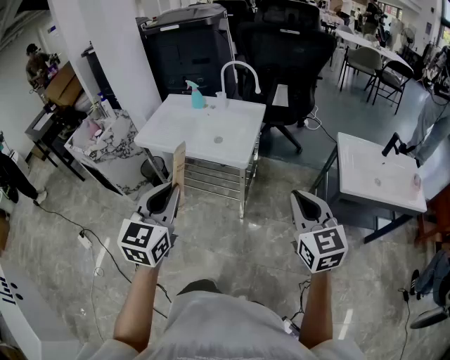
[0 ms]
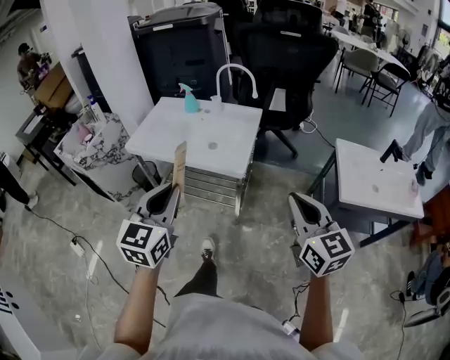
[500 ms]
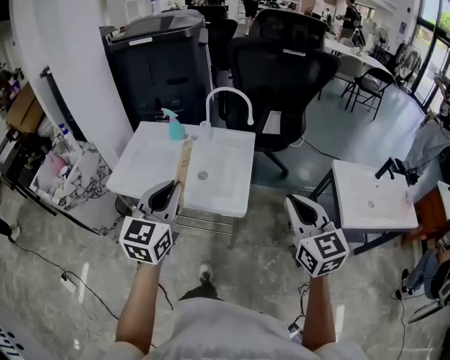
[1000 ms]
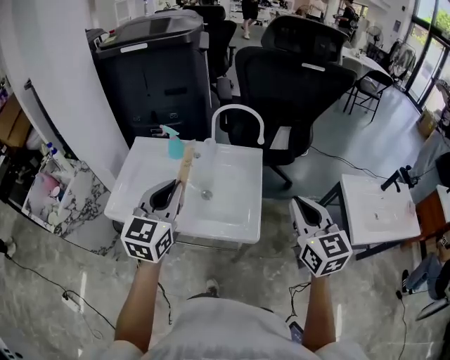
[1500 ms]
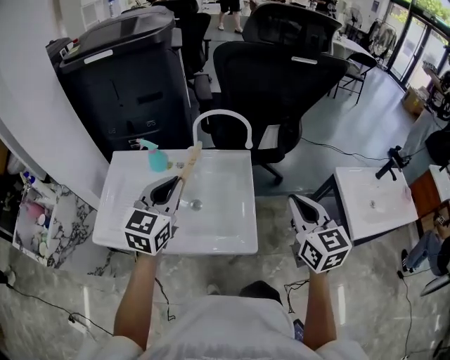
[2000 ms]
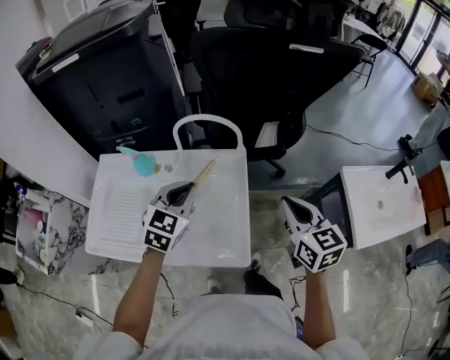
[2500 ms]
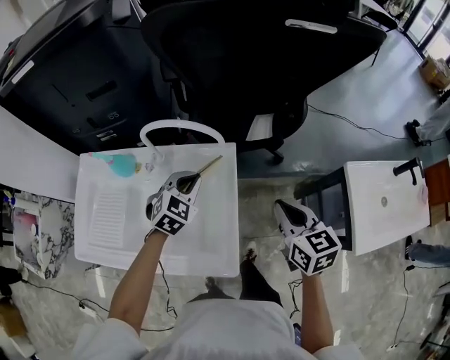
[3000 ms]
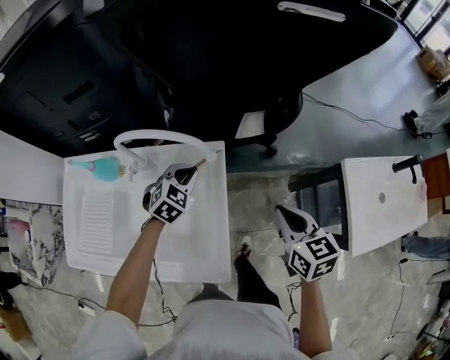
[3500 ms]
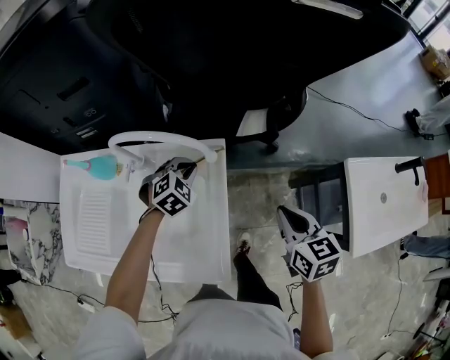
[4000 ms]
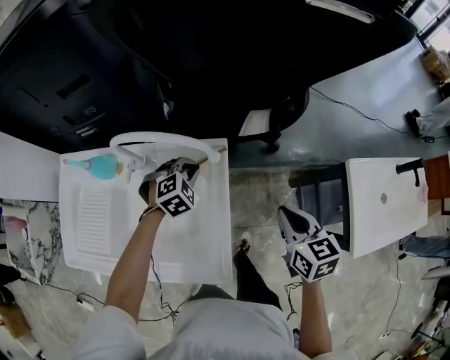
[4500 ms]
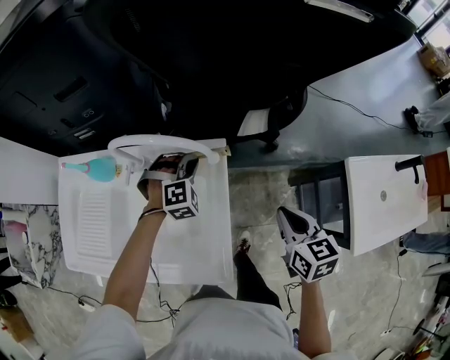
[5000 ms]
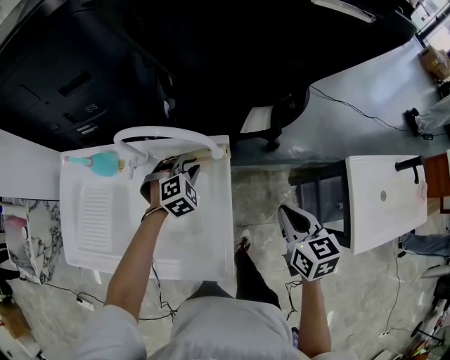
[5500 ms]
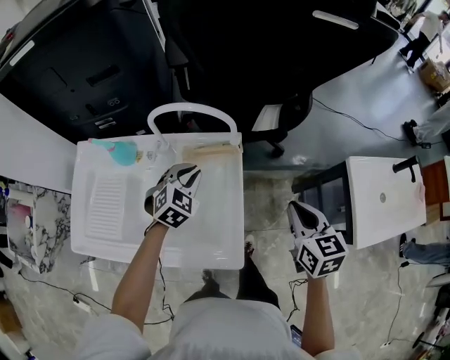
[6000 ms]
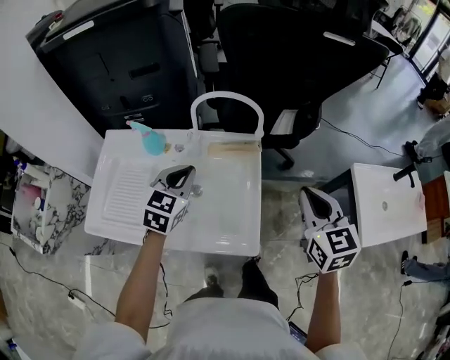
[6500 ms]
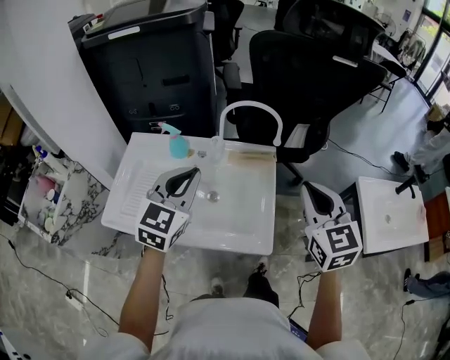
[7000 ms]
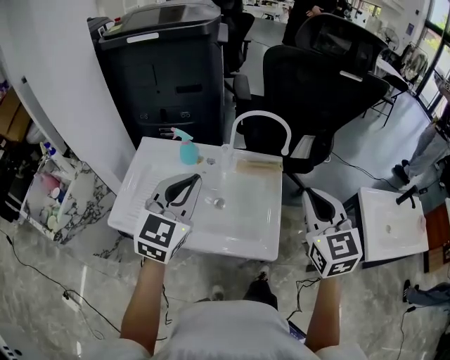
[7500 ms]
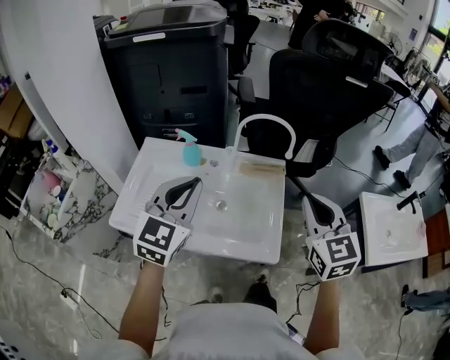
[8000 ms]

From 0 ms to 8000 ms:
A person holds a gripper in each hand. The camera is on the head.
From 0 ms to 2000 ms: The pair of grippers is taken forward, about 50 cm. The left gripper turns by approximately 20 degrees.
From 2000 ms to 4000 ms: The left gripper shifts some 40 cm downward, forward and to the right, and points its fingers some 40 degrees further downward, while the right gripper goes approximately 25 cm downward, forward and to the right, and rotates some 30 degrees.
From 4000 ms to 6000 ms: The right gripper ends up roughly 5 cm from where it was, while the left gripper goes some 10 cm backward and upward.
From 6000 ms to 8000 ms: The right gripper shifts some 25 cm upward, to the left and backward, and changes its angle by some 30 degrees, while the left gripper moves upward, backward and to the left, about 35 cm, and tilts its fingers approximately 30 degrees upward.

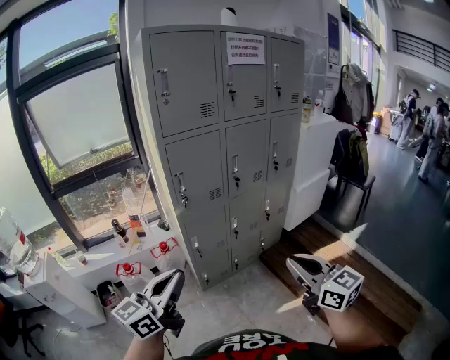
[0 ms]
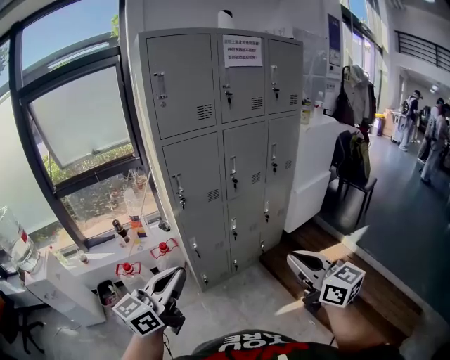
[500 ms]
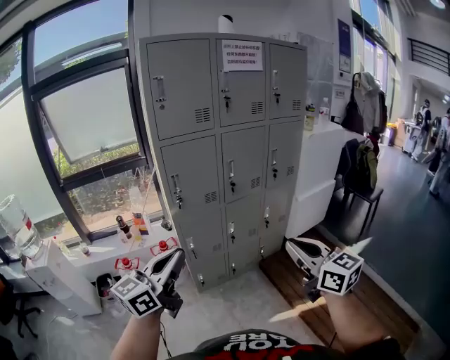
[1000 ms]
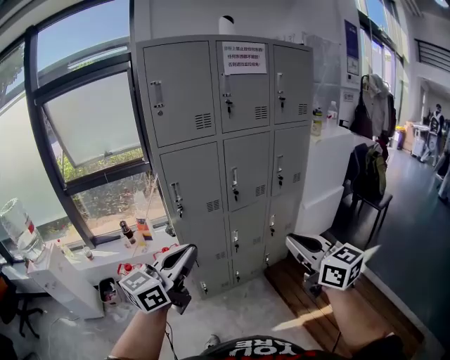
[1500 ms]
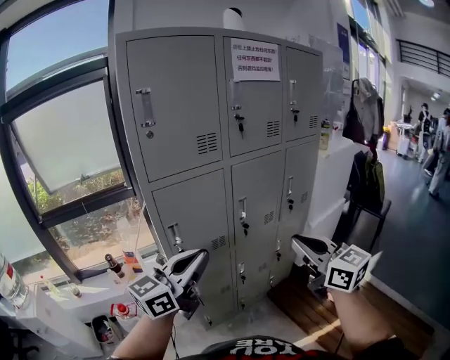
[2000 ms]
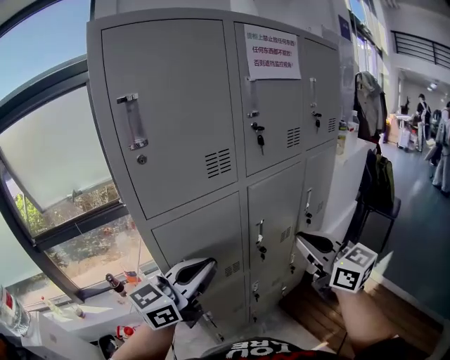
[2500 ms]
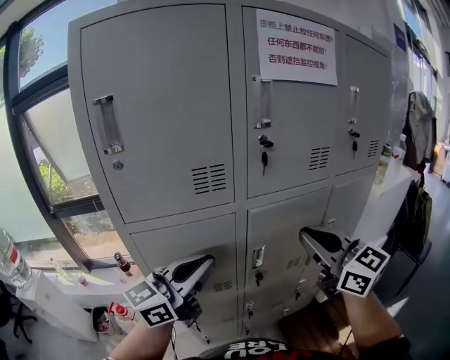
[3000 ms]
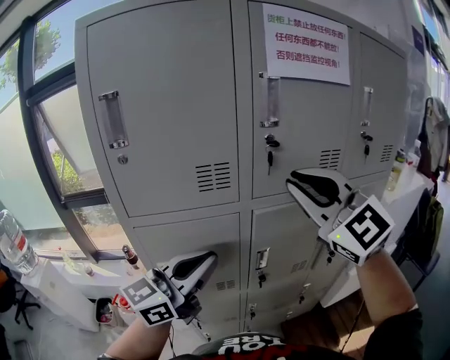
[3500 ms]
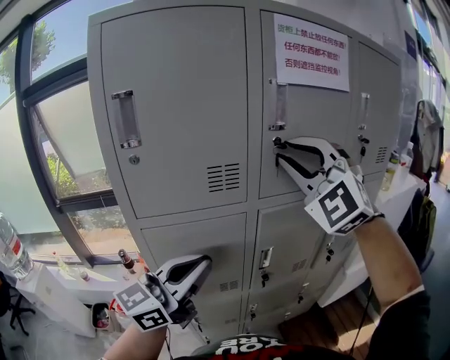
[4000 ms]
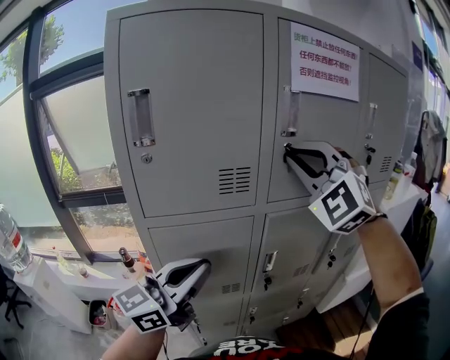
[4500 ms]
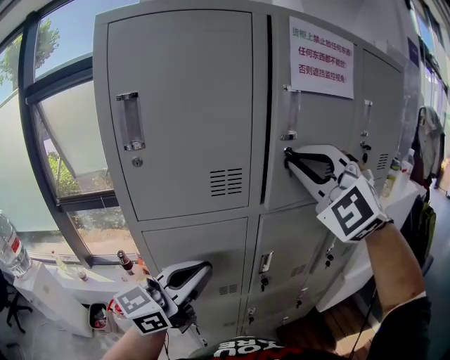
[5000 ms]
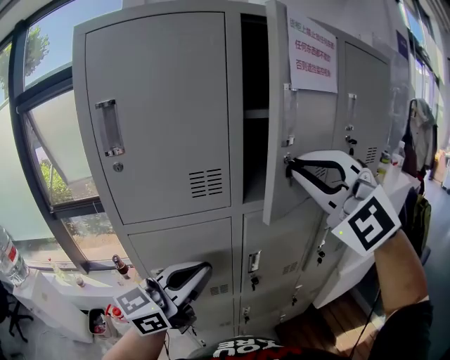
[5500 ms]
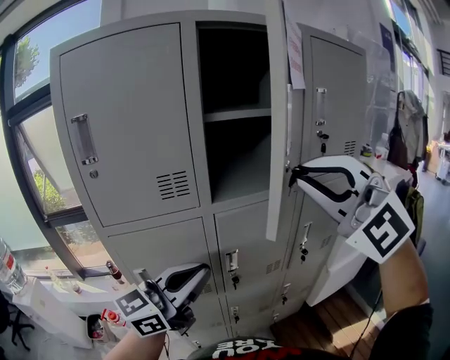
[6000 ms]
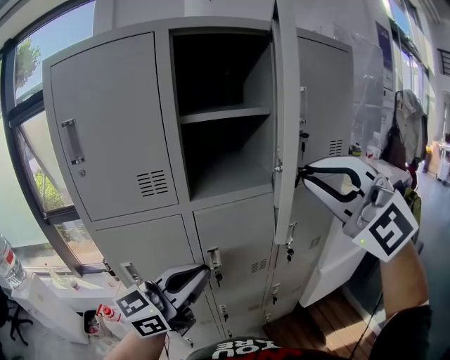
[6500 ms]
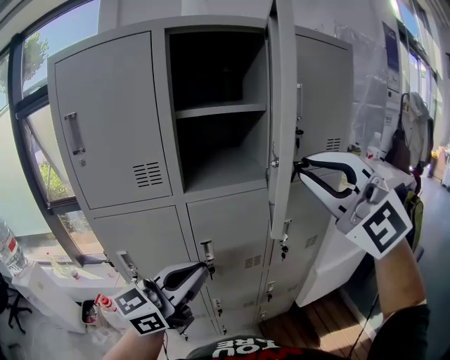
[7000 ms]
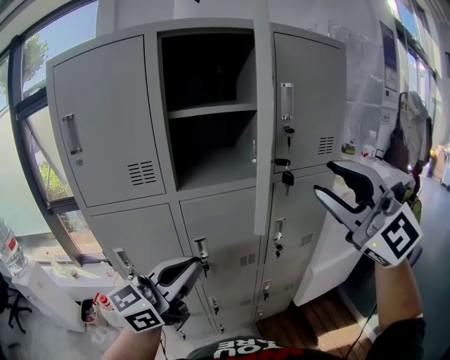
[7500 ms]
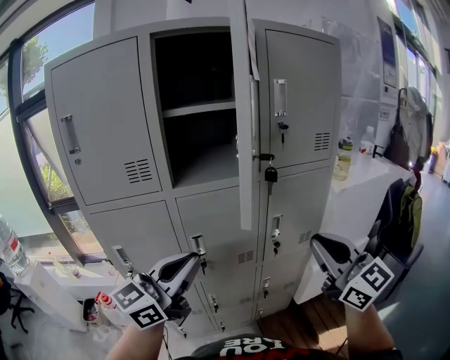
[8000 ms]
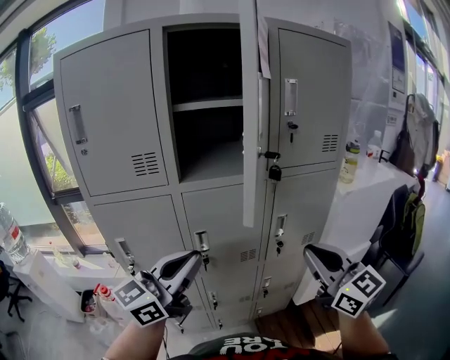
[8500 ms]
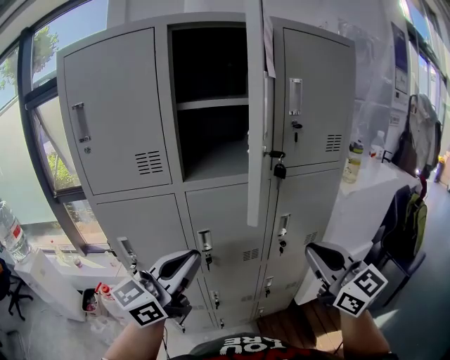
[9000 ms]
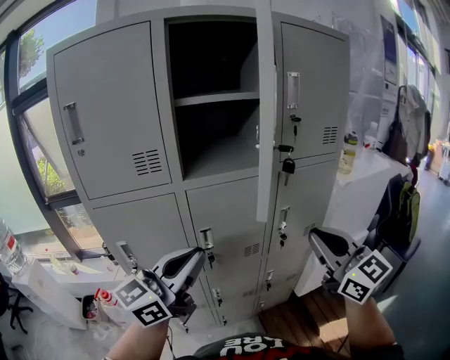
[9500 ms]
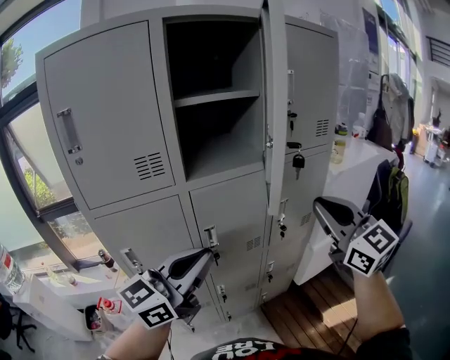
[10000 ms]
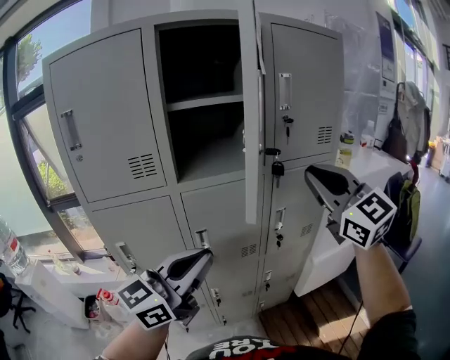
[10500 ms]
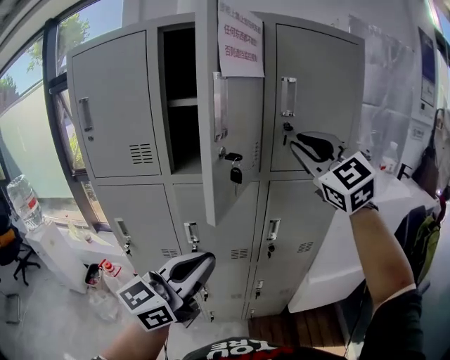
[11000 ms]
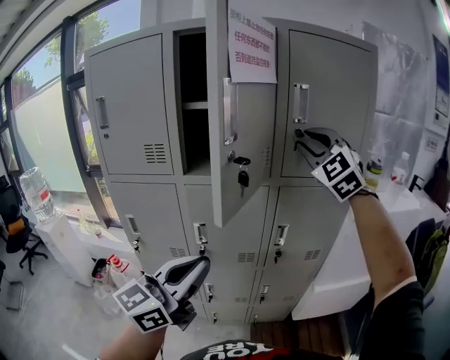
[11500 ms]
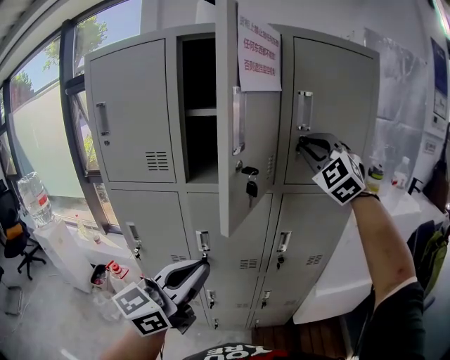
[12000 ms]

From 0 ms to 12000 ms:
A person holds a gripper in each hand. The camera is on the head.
From 0 ms to 2000 ms: The two grippers go roughly 30 cm forward.
From 2000 ms to 4000 ms: The left gripper travels forward by approximately 15 cm. Meanwhile the right gripper is displaced forward and upward by about 35 cm, and twists some 70 degrees counterclockwise, seen from behind.
From 4000 ms to 6000 ms: The right gripper travels to the right and backward by about 15 cm; the left gripper heads to the right, covering approximately 10 cm.
From 6000 ms to 8000 ms: The left gripper is displaced to the right by roughly 10 cm. The right gripper travels to the right and downward by approximately 25 cm, rolls clockwise, seen from behind, by some 60 degrees, and opens, then closes once more.
From 8000 ms to 10000 ms: The right gripper shifts about 5 cm to the left.
From 10000 ms to 12000 ms: The right gripper heads forward and upward, covering about 25 cm, and twists about 50 degrees counterclockwise, seen from behind, while the left gripper moves to the right, about 10 cm, and turns by some 20 degrees.

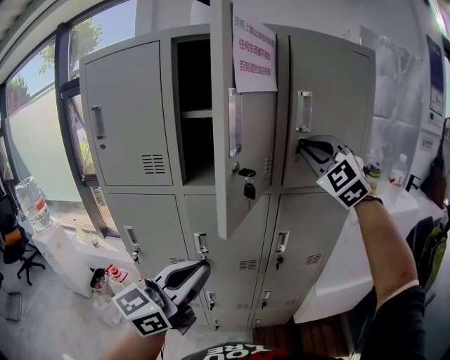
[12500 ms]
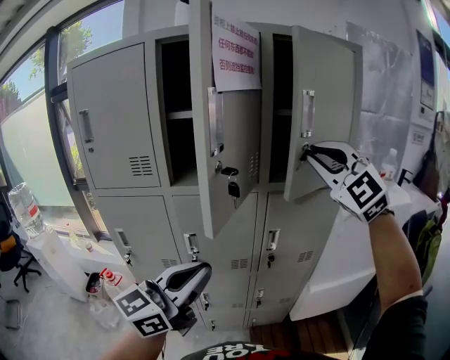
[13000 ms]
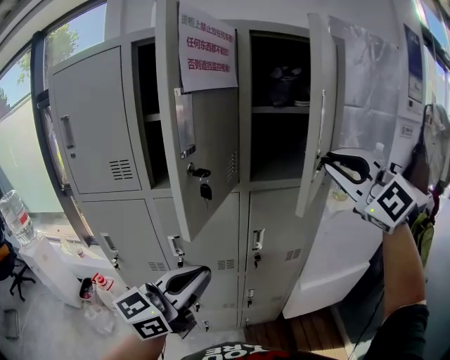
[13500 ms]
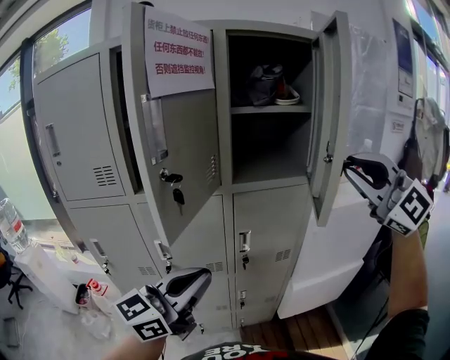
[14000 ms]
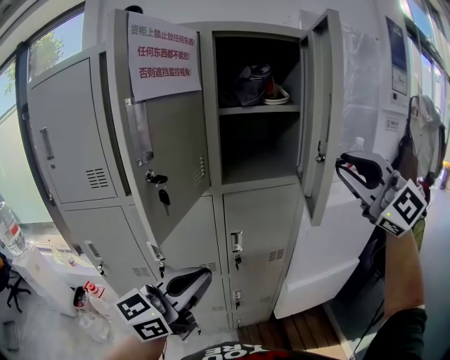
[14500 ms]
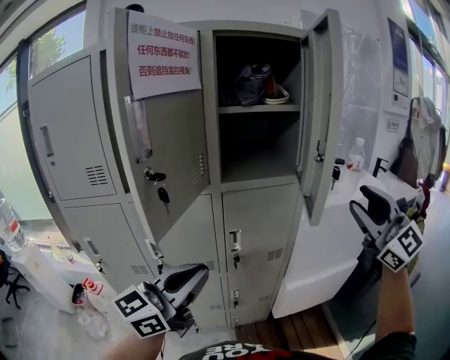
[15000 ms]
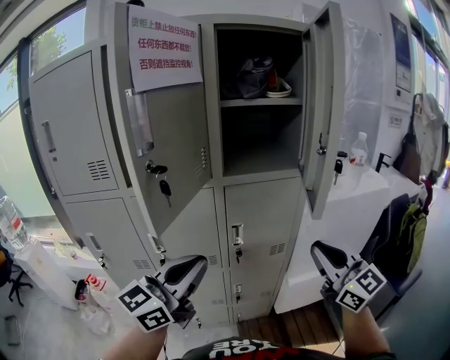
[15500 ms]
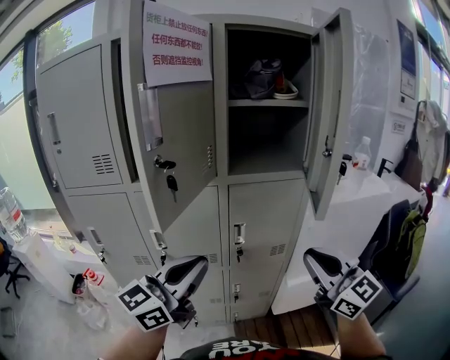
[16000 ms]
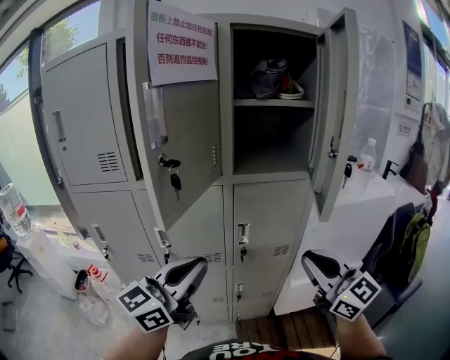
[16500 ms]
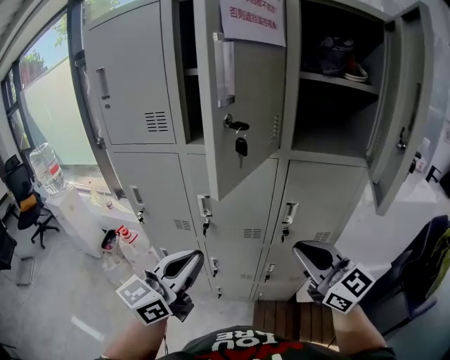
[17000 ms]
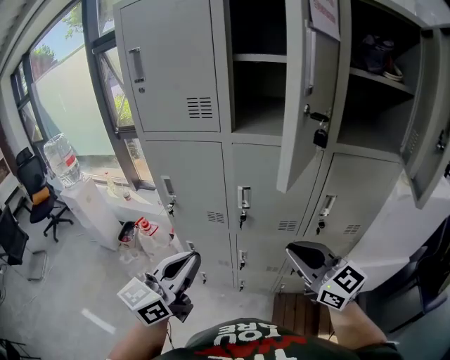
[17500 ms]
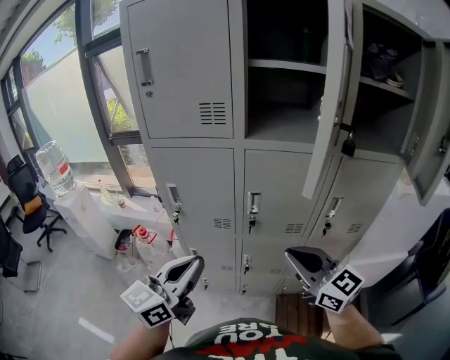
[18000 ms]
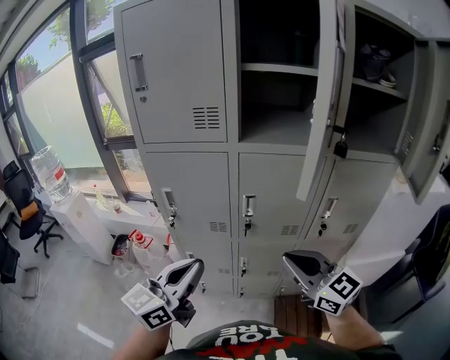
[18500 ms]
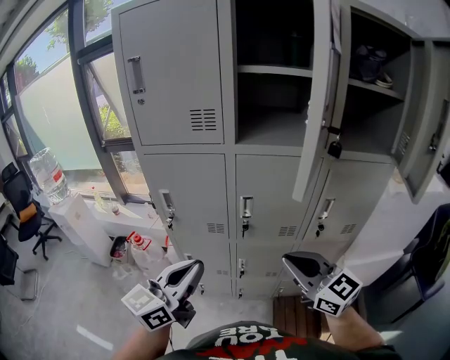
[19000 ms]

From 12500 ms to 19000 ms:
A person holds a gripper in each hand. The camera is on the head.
From 12500 ms to 14500 ms: The right gripper shifts approximately 25 cm to the right and backward, and rotates roughly 20 degrees, while the left gripper shifts roughly 15 cm to the right.
From 14500 ms to 17000 ms: The left gripper heads to the left and downward, covering approximately 15 cm, and turns by some 20 degrees. The right gripper shifts some 30 cm downward and to the left, rotates around the line of its fingers by about 50 degrees, clockwise from behind, and opens, then closes once more.
From 17000 ms to 19000 ms: The two grippers go roughly 15 cm to the left.
